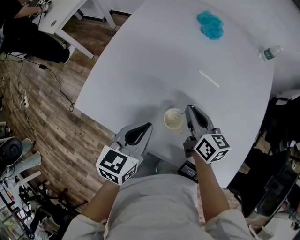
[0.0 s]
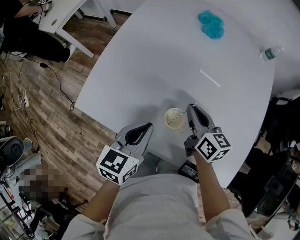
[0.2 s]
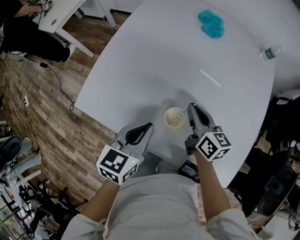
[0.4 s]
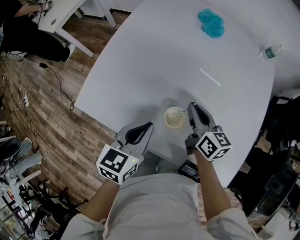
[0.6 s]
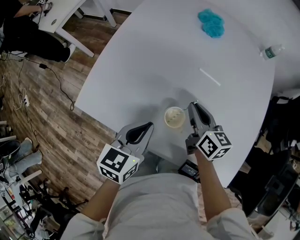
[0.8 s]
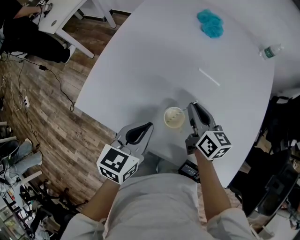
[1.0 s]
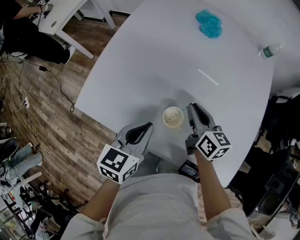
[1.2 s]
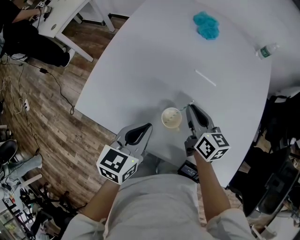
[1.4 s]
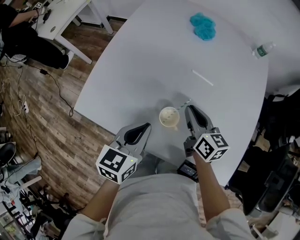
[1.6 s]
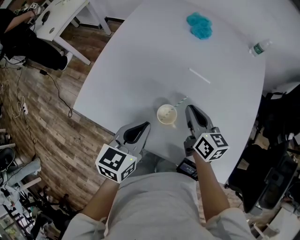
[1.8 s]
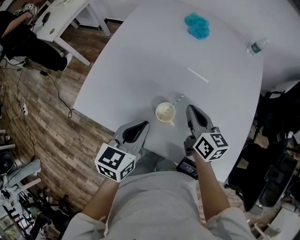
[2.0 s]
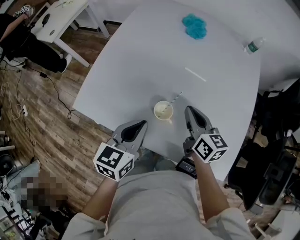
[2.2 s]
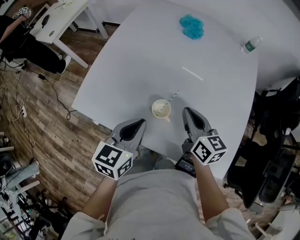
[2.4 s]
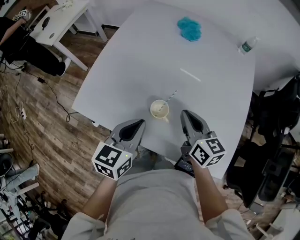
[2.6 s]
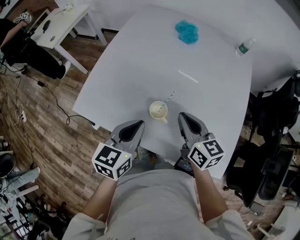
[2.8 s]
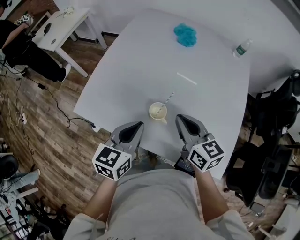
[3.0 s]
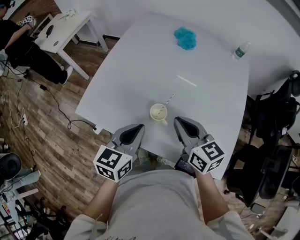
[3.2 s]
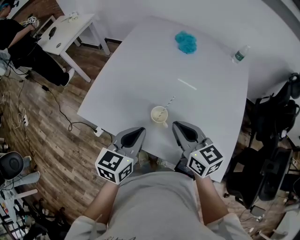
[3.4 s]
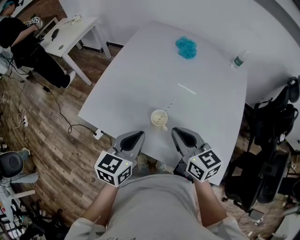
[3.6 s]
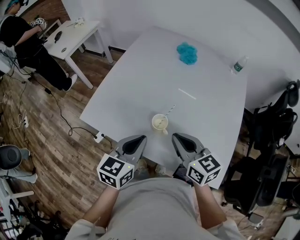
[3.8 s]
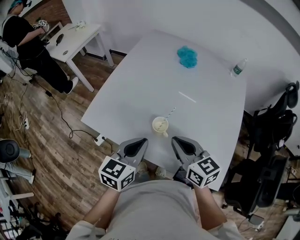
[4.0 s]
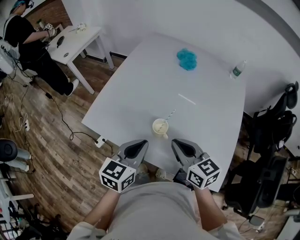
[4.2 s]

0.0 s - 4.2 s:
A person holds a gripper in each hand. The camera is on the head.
0.0 s - 1.4 s: The grippers move only a little.
1.4 s - 2.8 s: The left gripper shifts by approximately 5 cm, while the right gripper is displaced backward and upward by roughly 10 cm.
2.8 s - 4.2 s: The left gripper shifts by some 5 cm, while the right gripper shifts approximately 5 cm backward.

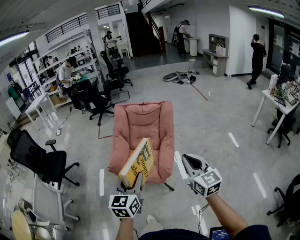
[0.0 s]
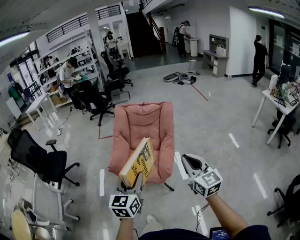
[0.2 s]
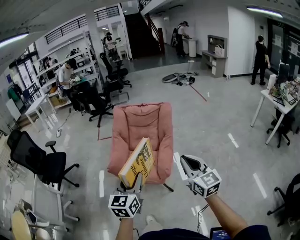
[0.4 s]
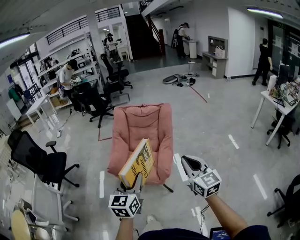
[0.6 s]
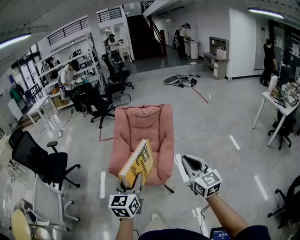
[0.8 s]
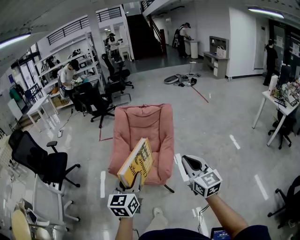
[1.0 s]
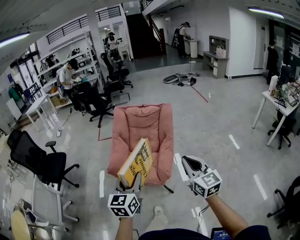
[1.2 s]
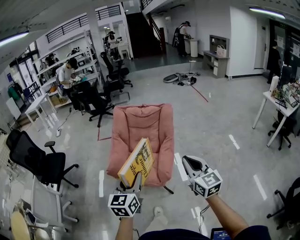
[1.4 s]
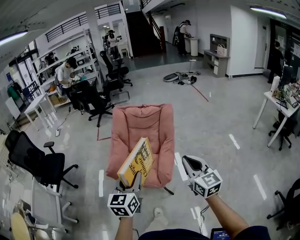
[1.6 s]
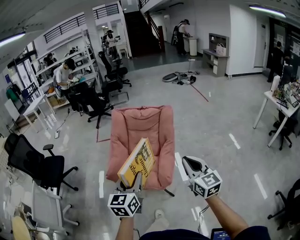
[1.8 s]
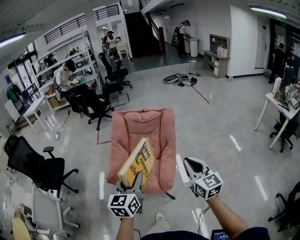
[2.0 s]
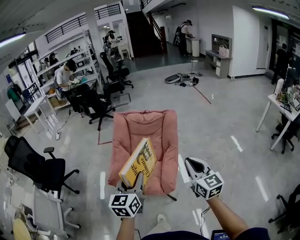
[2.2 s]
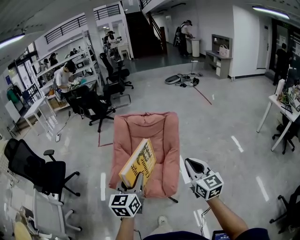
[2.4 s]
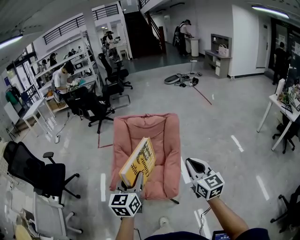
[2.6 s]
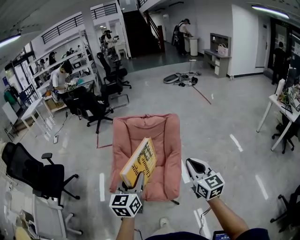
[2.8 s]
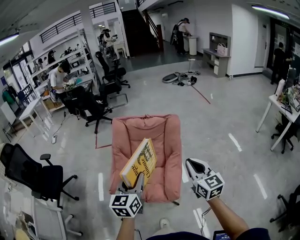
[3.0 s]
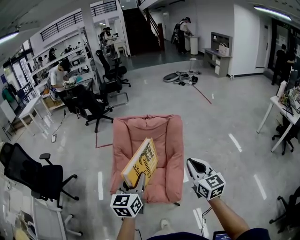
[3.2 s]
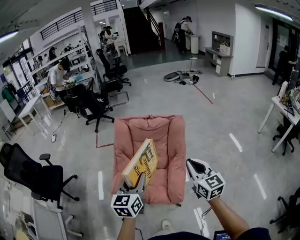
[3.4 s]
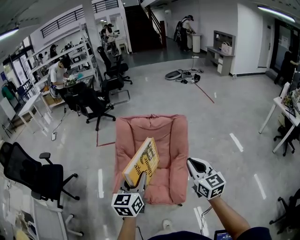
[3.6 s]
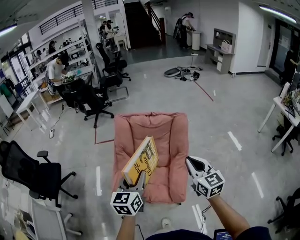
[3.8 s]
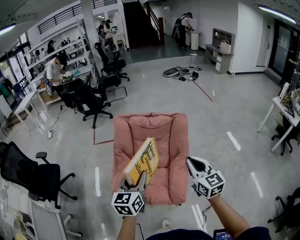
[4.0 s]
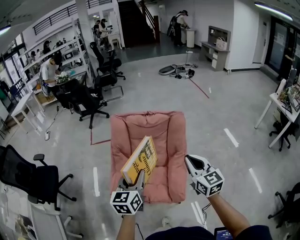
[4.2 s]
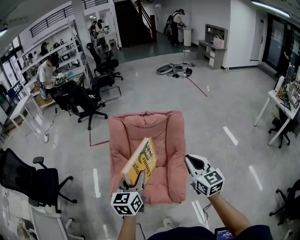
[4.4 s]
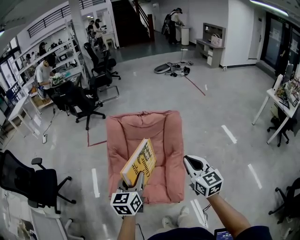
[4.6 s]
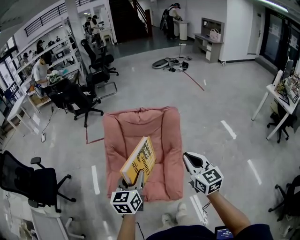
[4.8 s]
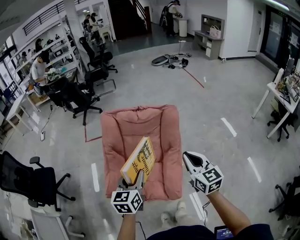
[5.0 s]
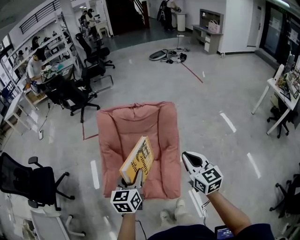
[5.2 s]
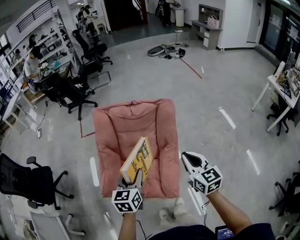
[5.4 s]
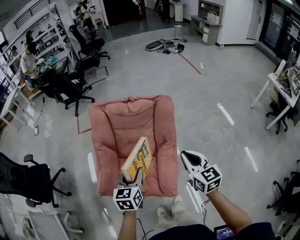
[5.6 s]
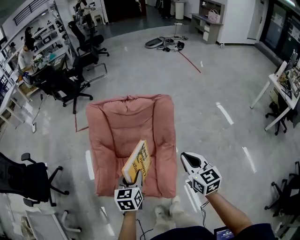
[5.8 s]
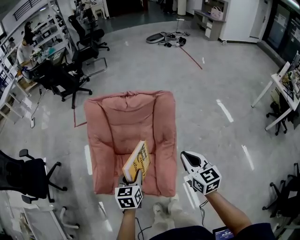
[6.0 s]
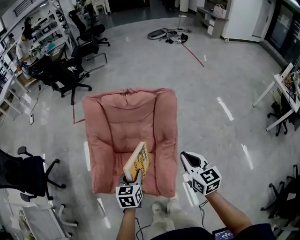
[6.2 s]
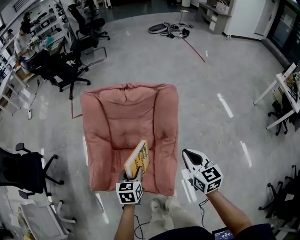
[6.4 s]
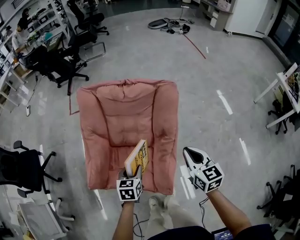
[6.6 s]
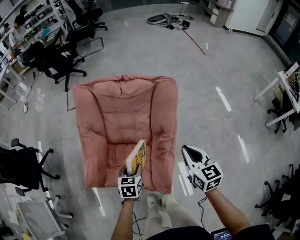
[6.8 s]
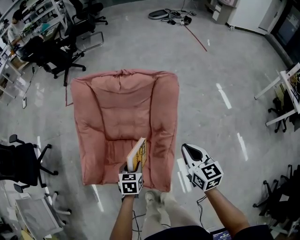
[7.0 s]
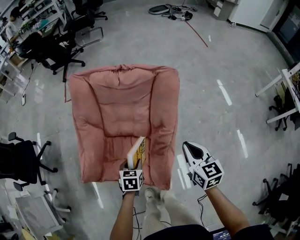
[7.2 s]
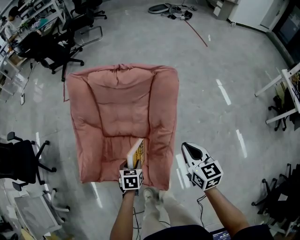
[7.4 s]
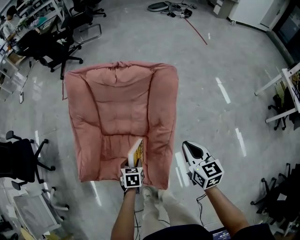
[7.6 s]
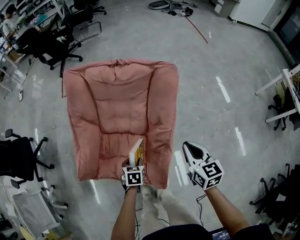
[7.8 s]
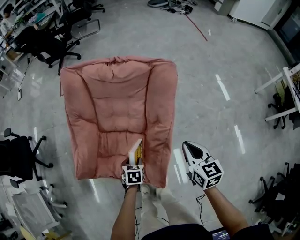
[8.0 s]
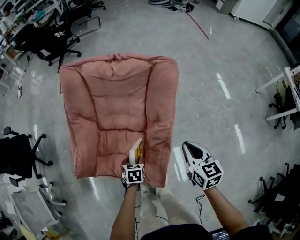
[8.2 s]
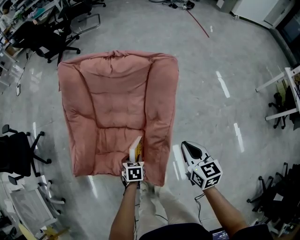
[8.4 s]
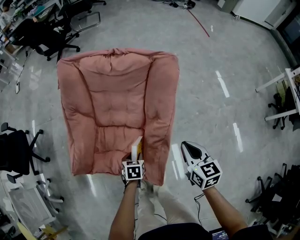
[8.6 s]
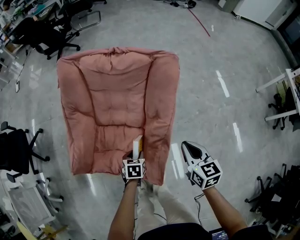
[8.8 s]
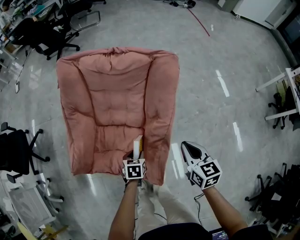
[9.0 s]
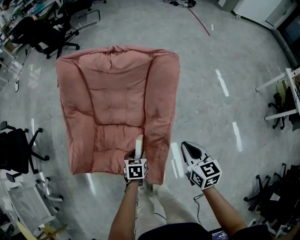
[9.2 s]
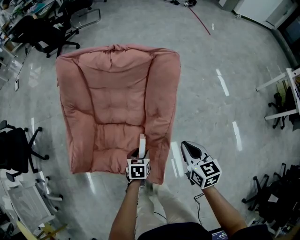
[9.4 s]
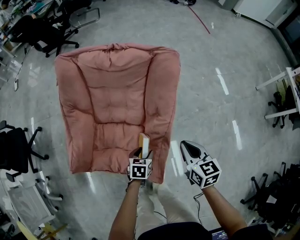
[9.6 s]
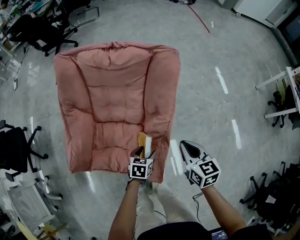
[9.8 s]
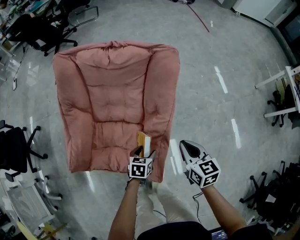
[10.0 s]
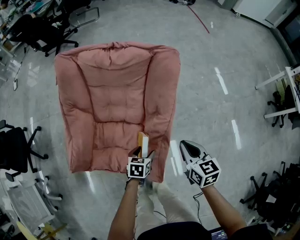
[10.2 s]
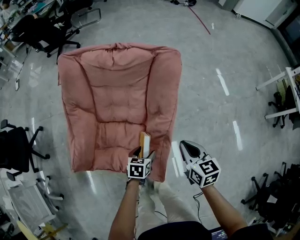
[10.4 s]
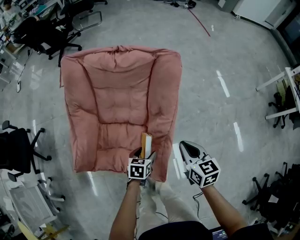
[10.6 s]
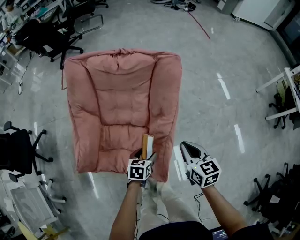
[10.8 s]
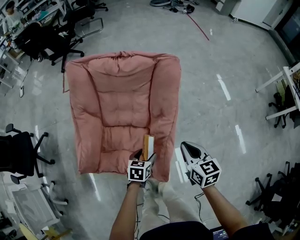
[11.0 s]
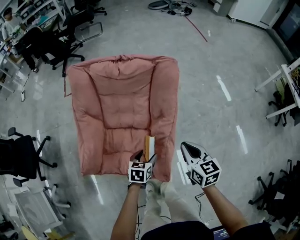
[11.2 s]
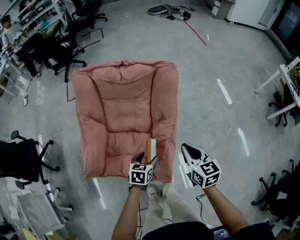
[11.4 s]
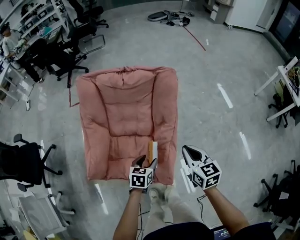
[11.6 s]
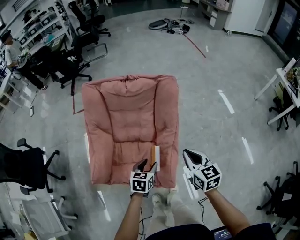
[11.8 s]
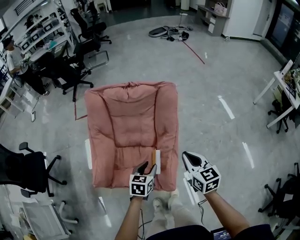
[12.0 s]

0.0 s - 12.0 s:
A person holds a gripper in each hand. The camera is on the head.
0.0 s - 1.6 s: The left gripper moves forward, about 5 cm. Meanwhile the right gripper moves approximately 5 cm.
1.6 s - 3.0 s: Both grippers travel together forward, roughly 15 cm.
3.0 s - 4.4 s: The two grippers go about 10 cm forward.
4.4 s - 6.0 s: The two grippers go approximately 20 cm downward, forward and to the right. The left gripper swivels approximately 20 degrees.
6.0 s - 7.6 s: The left gripper moves downward, about 20 cm, and rotates roughly 20 degrees; the right gripper heads downward, covering roughly 10 cm.
7.6 s - 9.0 s: The right gripper ends up some 5 cm from where it was, while the left gripper ends up roughly 5 cm from where it was.
9.0 s - 10.4 s: The left gripper opens.
10.4 s - 12.0 s: The left gripper goes roughly 15 cm upward, and closes up. The right gripper goes roughly 15 cm upward and backward.

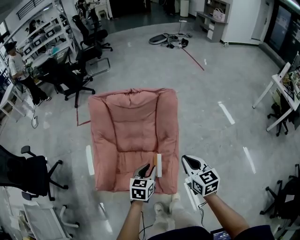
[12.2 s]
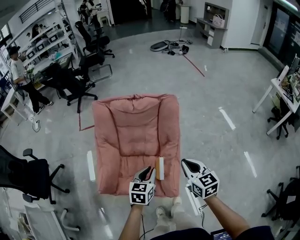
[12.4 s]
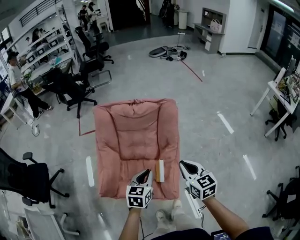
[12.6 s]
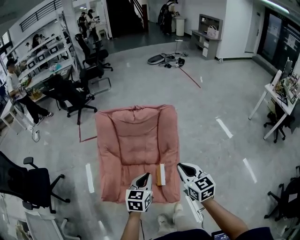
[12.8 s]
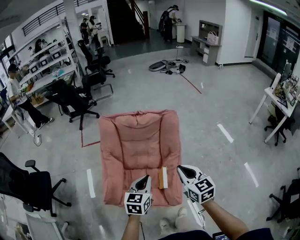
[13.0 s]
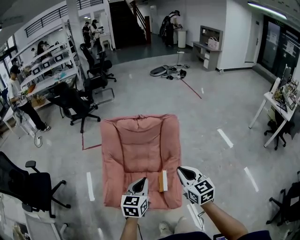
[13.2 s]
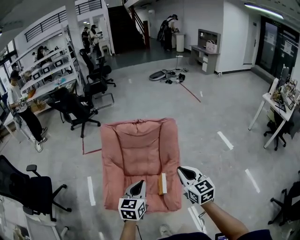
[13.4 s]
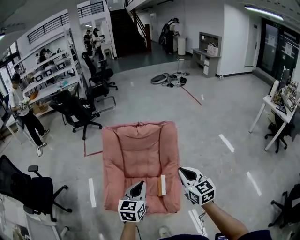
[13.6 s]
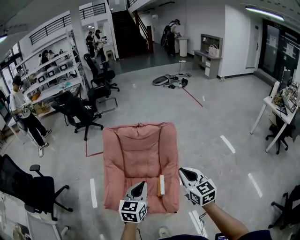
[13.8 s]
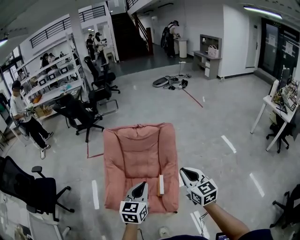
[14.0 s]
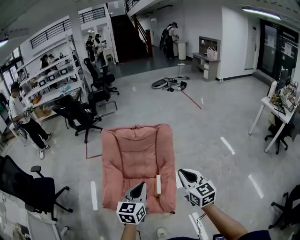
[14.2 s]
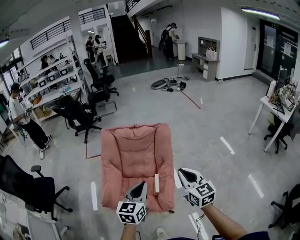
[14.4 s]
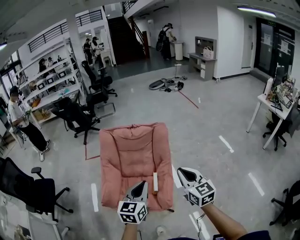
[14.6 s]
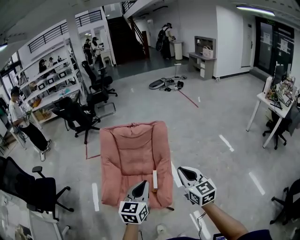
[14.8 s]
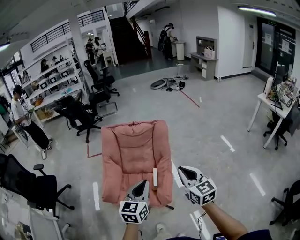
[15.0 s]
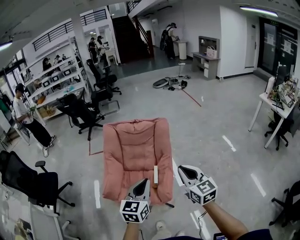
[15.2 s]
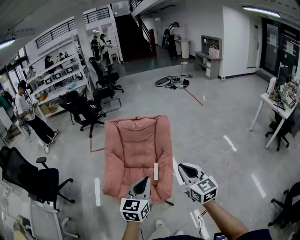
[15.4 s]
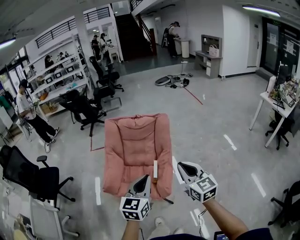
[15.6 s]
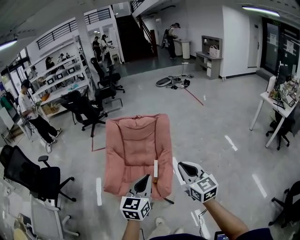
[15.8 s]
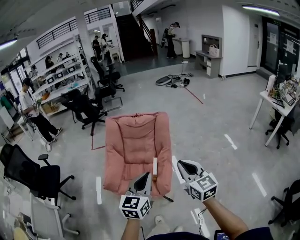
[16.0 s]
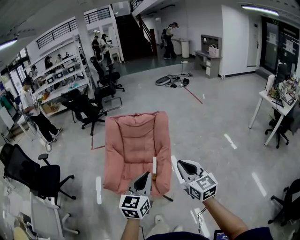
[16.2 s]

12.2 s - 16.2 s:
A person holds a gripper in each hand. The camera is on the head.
12.2 s - 13.6 s: The right gripper heads upward, covering about 10 cm. The left gripper heads upward and to the left, covering about 20 cm, and closes up.
13.6 s - 14.8 s: The left gripper heads backward, to the right and upward, covering approximately 15 cm. The right gripper shifts about 10 cm backward and to the right.
14.8 s - 16.2 s: The two grippers go approximately 10 cm backward.

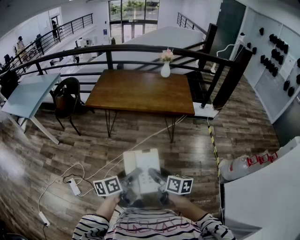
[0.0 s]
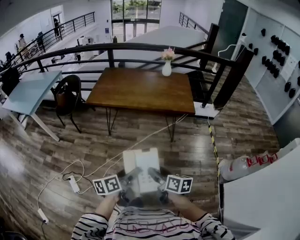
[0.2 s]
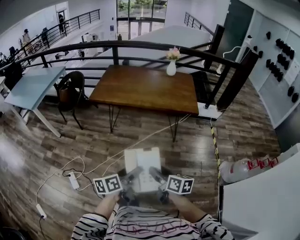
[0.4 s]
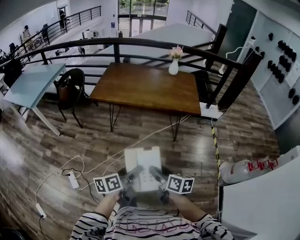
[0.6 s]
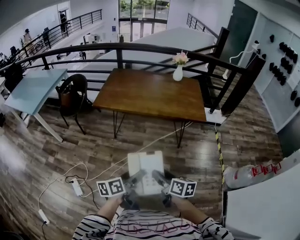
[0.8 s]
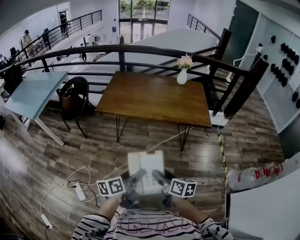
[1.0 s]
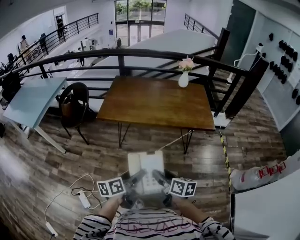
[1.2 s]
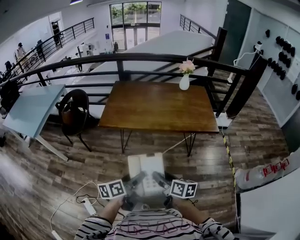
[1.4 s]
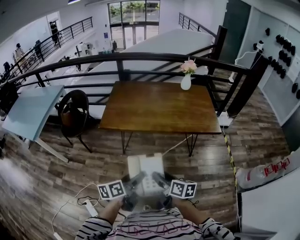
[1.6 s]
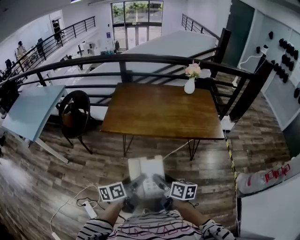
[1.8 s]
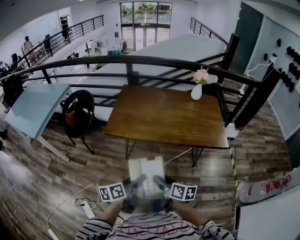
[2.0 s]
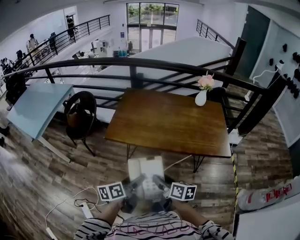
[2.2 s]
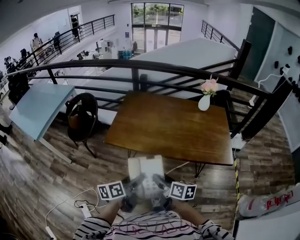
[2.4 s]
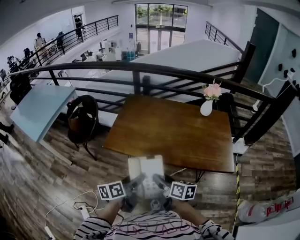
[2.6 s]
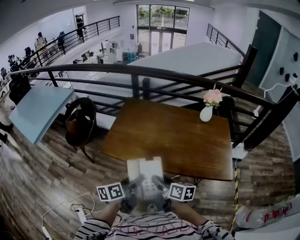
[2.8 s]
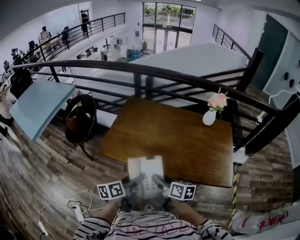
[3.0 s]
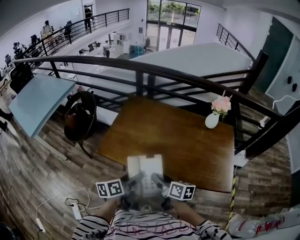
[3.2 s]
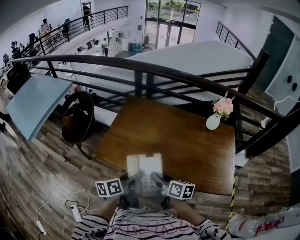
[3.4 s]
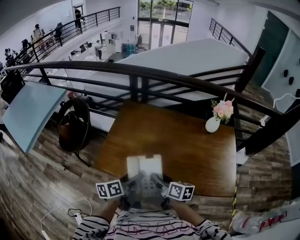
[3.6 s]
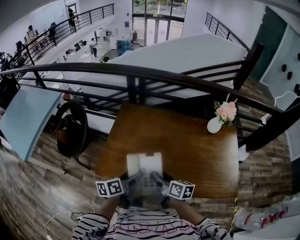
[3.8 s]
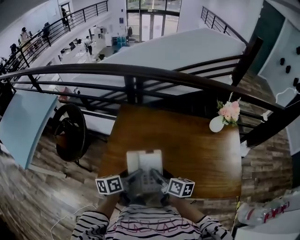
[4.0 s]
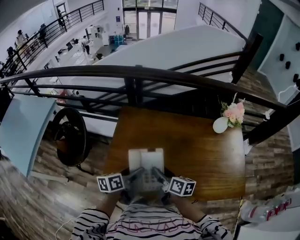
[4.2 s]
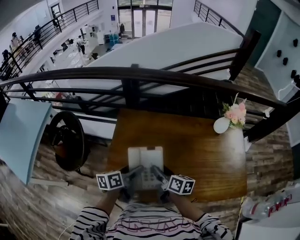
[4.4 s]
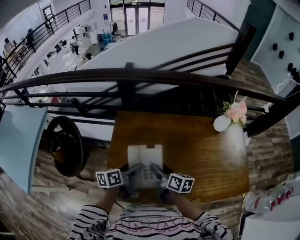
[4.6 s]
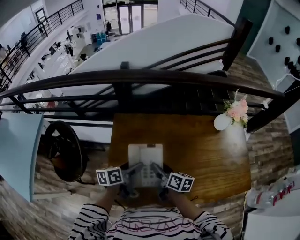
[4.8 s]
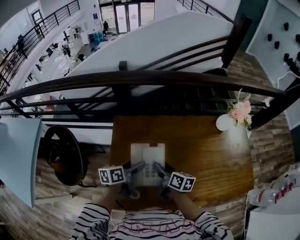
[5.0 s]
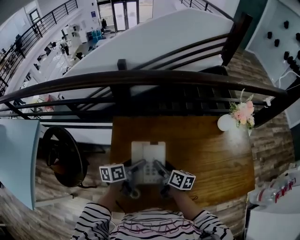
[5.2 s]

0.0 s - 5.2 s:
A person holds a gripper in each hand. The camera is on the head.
0.0 s - 1.8 s: Both grippers move forward and to the left, approximately 35 cm.
1.8 s - 3.4 s: The pair of grippers is taken forward, some 40 cm.
3.4 s - 5.2 s: The pair of grippers is taken forward, approximately 50 cm. The left gripper changes its angle by about 20 degrees; the right gripper turns by approximately 30 degrees.
